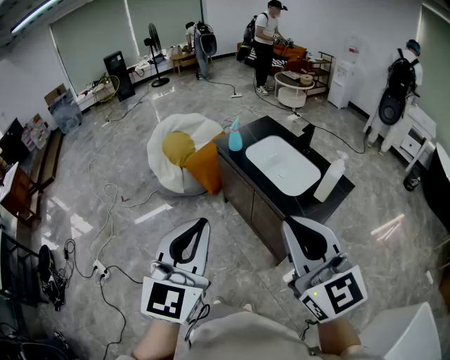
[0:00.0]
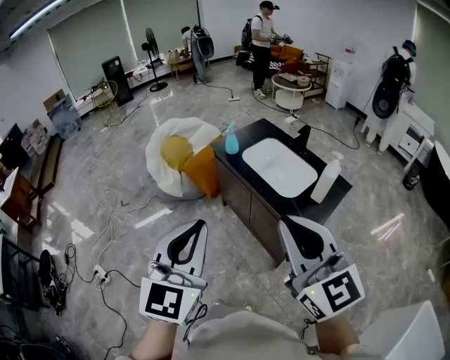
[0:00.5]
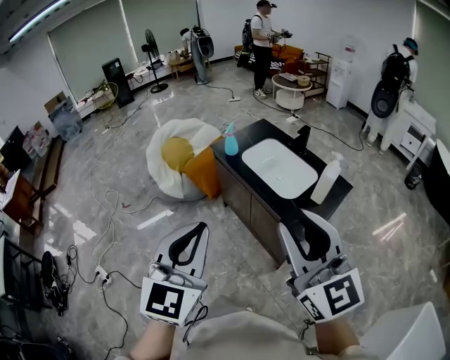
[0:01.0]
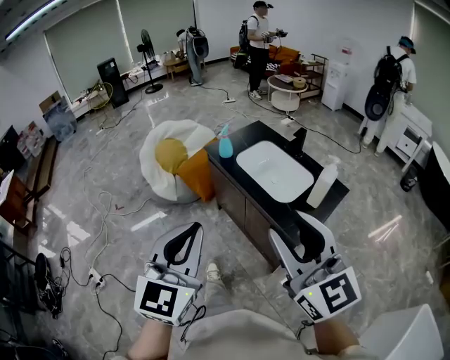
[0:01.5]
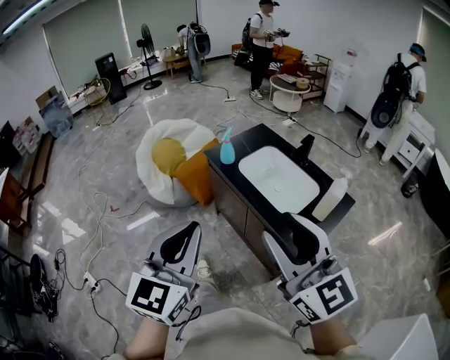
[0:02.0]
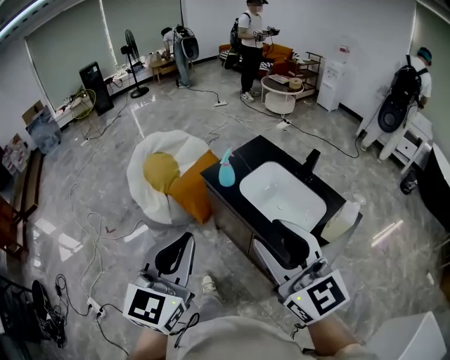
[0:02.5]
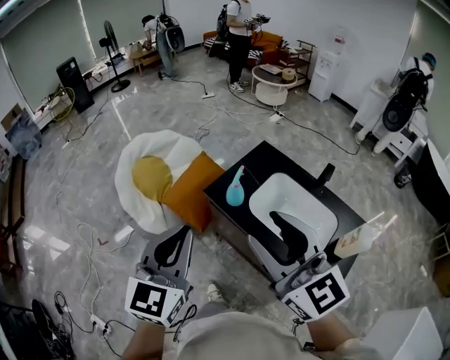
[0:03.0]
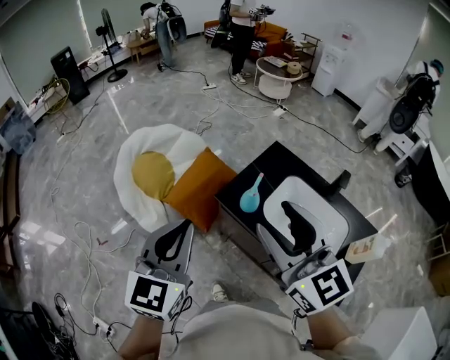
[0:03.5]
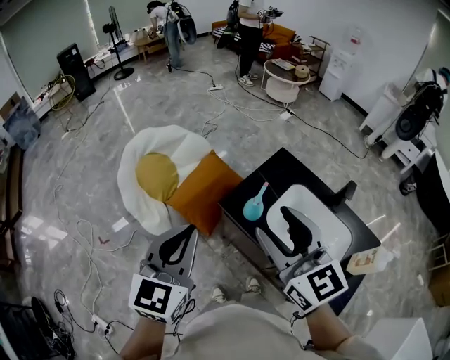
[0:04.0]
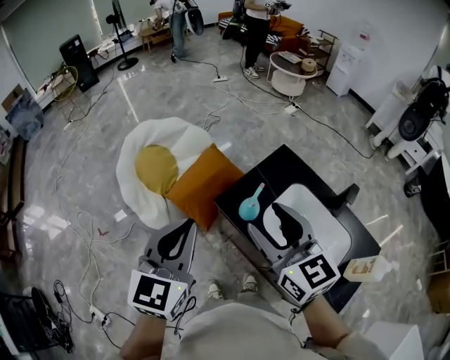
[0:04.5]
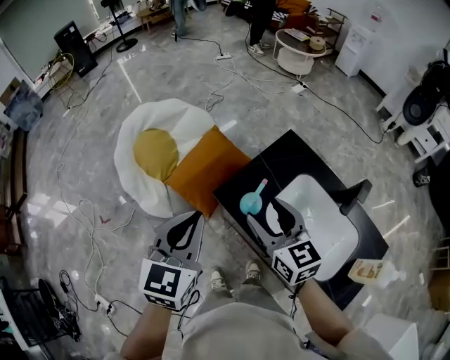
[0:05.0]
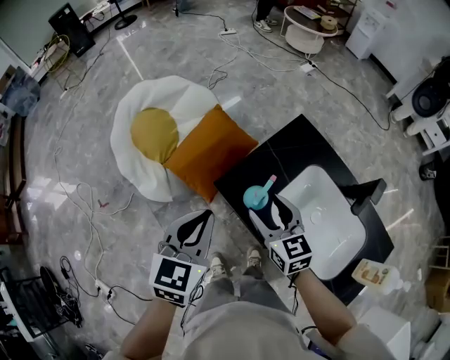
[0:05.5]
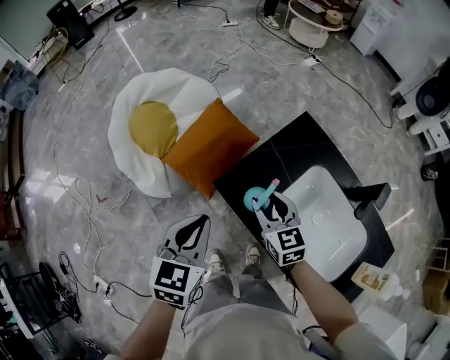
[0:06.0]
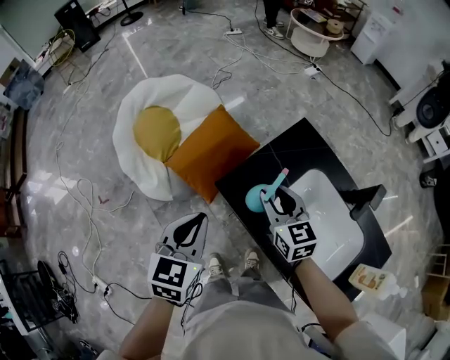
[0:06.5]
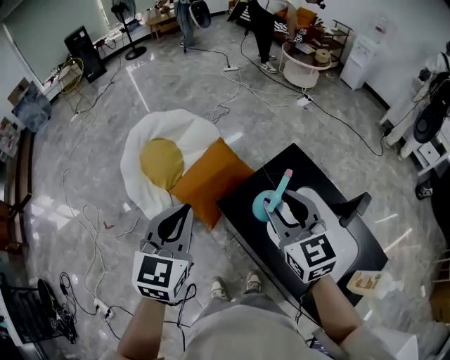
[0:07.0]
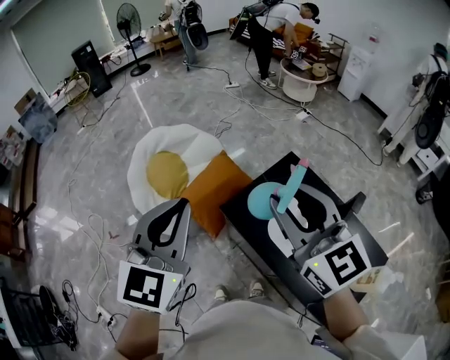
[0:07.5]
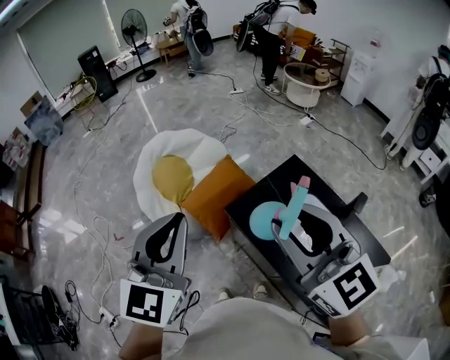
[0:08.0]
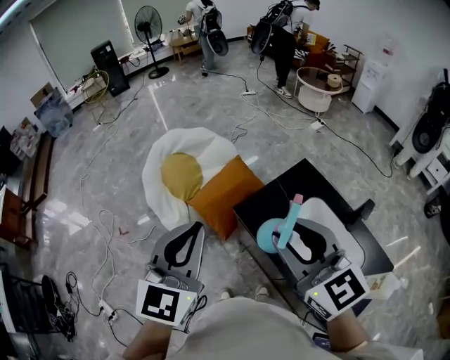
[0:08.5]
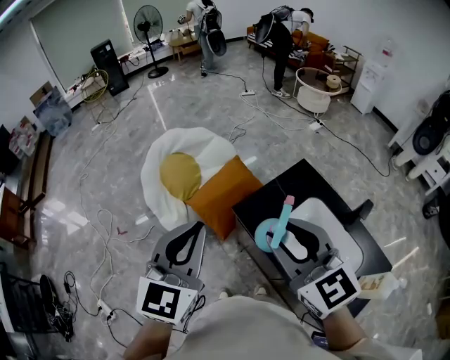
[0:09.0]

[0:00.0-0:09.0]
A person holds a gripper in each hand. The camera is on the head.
0:00.0 to 0:02.0: Both grippers move forward, approximately 10 cm. The right gripper opens its fingers.
0:02.0 to 0:04.5: The pair of grippers is taken forward, about 50 cm.
0:04.5 to 0:07.0: Both grippers travel together forward, roughly 10 cm. The right gripper travels downward and back again, some 30 cm each way, and closes up. The left gripper moves roughly 20 cm downward and comes back.
0:07.0 to 0:09.0: The right gripper travels backward, upward and to the left by about 15 cm. Meanwhile the left gripper heads backward and upward, covering some 15 cm.

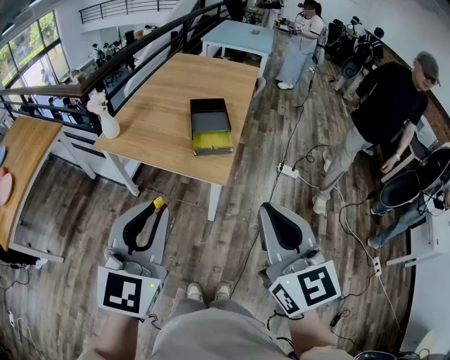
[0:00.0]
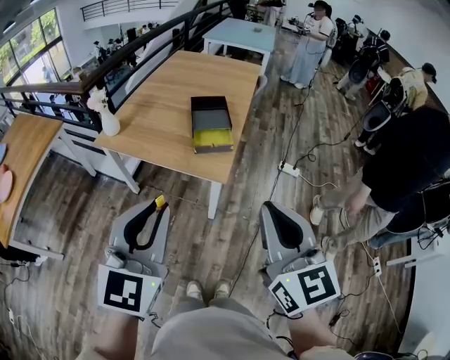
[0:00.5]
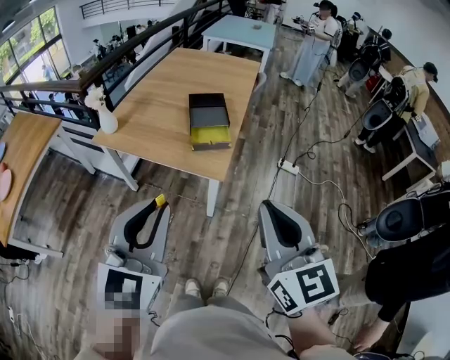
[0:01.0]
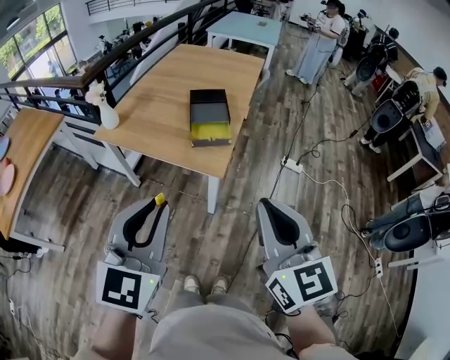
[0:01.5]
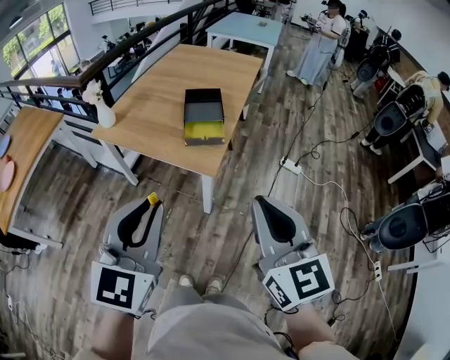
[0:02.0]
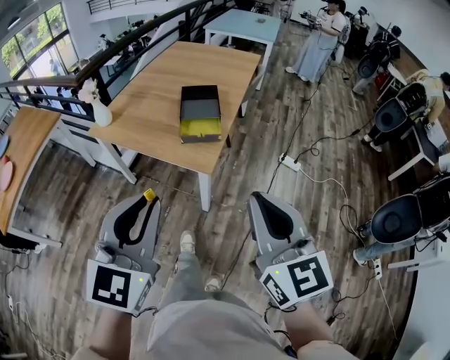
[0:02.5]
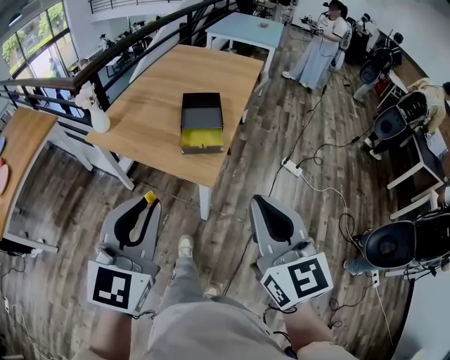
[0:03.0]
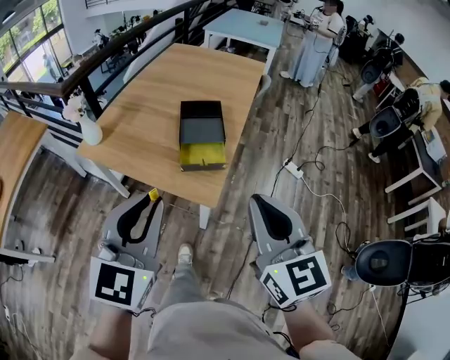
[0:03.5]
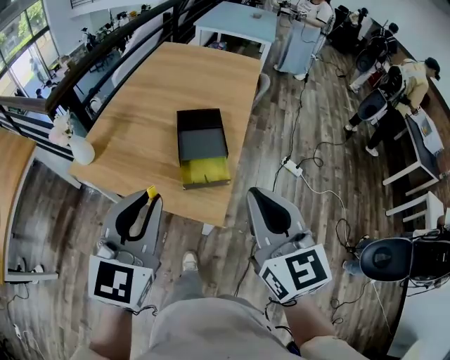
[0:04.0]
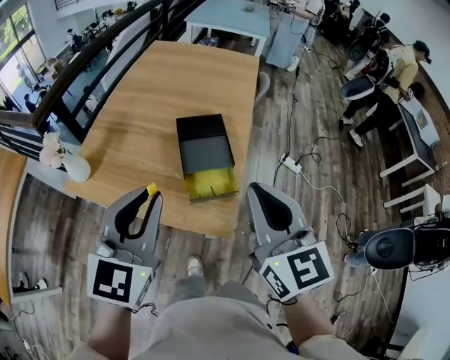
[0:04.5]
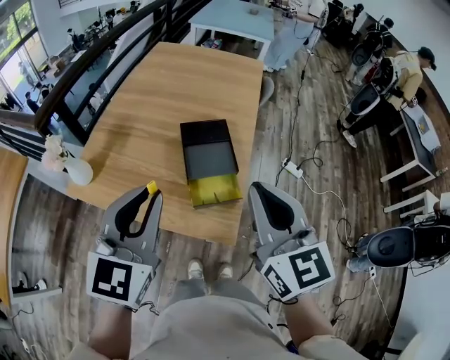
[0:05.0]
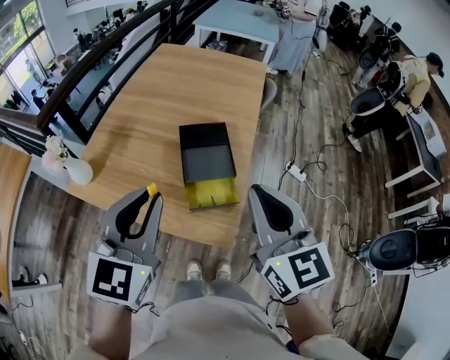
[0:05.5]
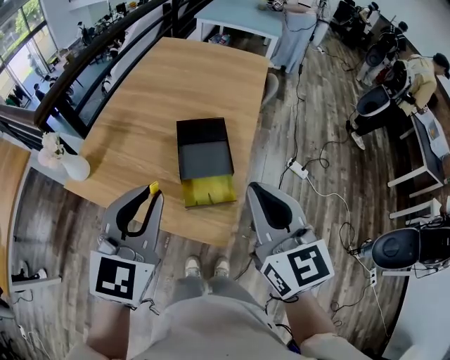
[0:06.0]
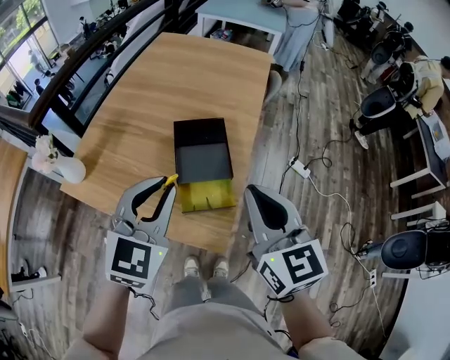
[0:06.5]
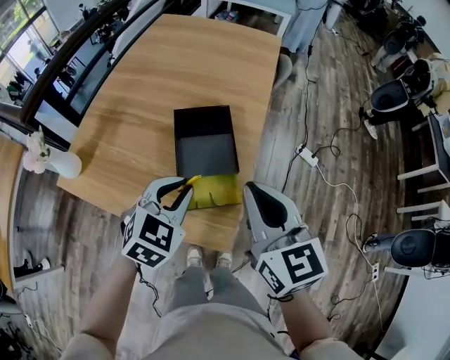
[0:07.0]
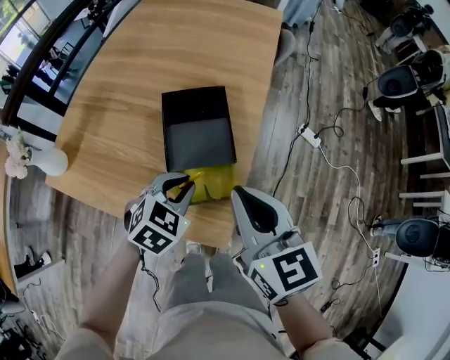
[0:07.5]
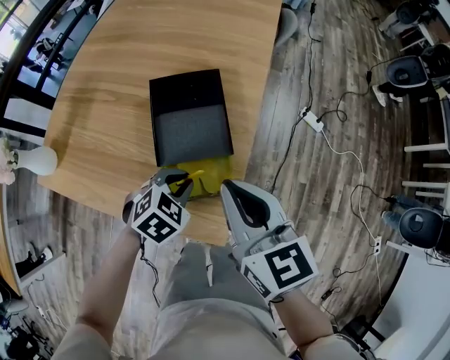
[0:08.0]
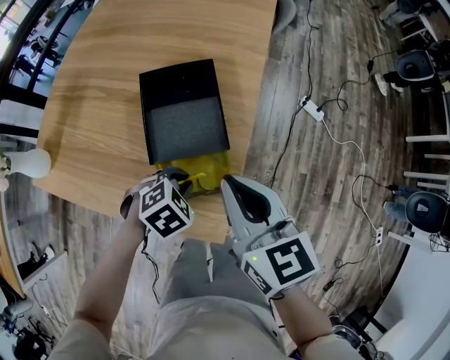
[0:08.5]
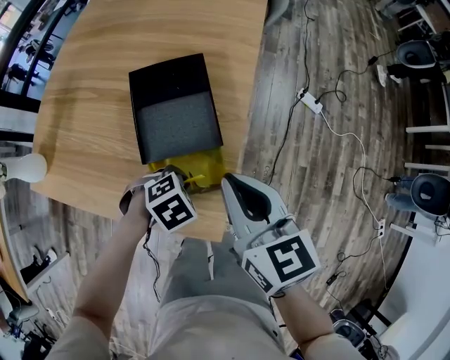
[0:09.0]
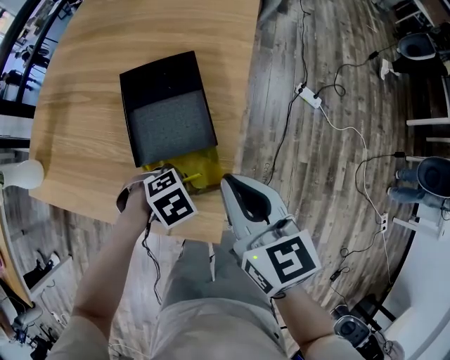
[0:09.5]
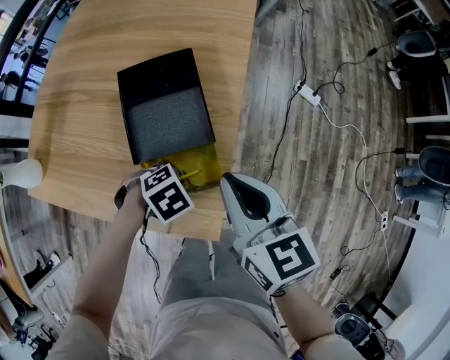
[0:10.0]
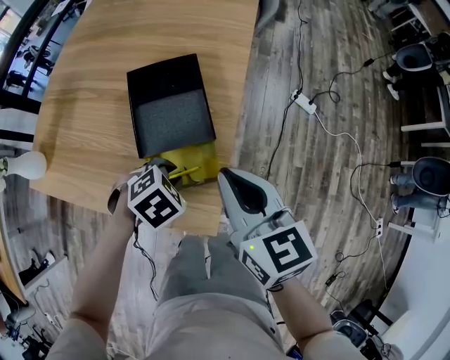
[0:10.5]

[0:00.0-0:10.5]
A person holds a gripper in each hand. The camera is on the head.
0:00.0 to 0:02.0: Both grippers travel together to the right, some 10 cm.
0:02.0 to 0:04.0: The two grippers go about 30 cm forward.
0:04.0 to 0:06.5: The grippers both shift forward by approximately 20 cm.
0:06.5 to 0:08.5: The left gripper is displaced downward by roughly 35 cm, and tilts its fingers about 50 degrees downward; the right gripper moves downward and forward, some 20 cm.
0:08.5 to 0:10.5: The grippers move only a little.

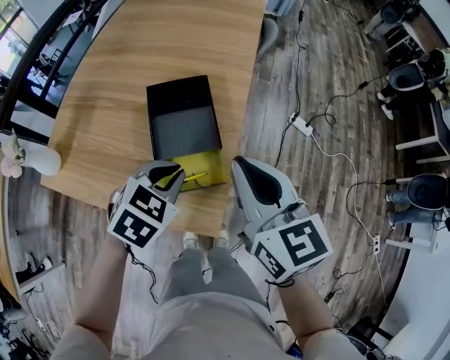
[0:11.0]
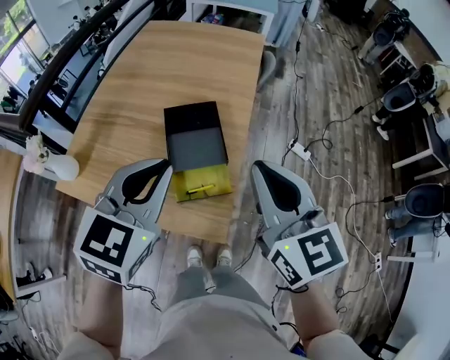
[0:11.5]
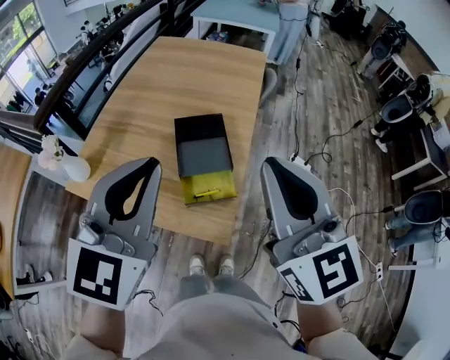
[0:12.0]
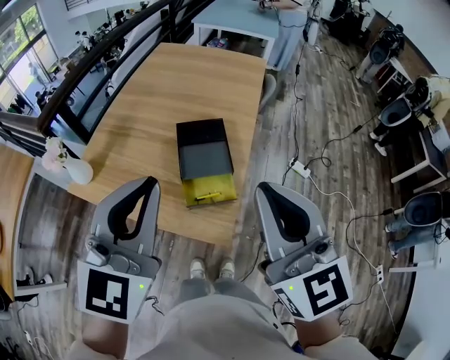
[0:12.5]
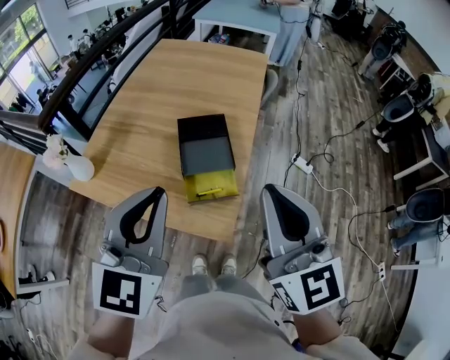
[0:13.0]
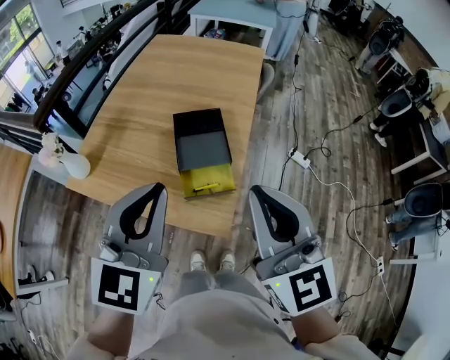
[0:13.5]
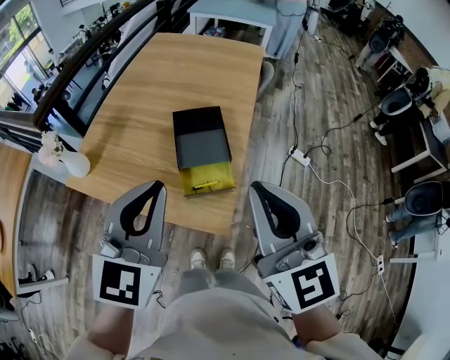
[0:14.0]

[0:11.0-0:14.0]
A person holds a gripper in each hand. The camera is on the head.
0:11.0 to 0:12.5: The two grippers go roughly 30 cm upward and backward. The right gripper turns by about 20 degrees, while the left gripper tilts its fingers some 50 degrees upward.
0:12.5 to 0:14.0: The left gripper is displaced downward by approximately 5 cm.

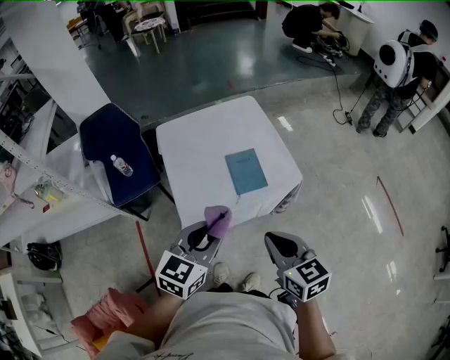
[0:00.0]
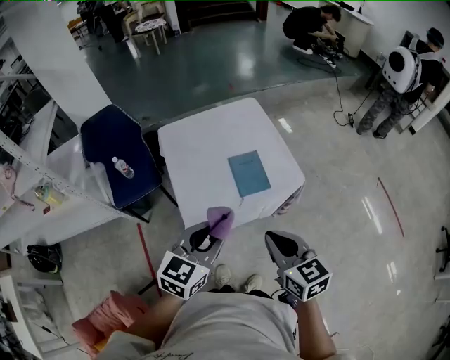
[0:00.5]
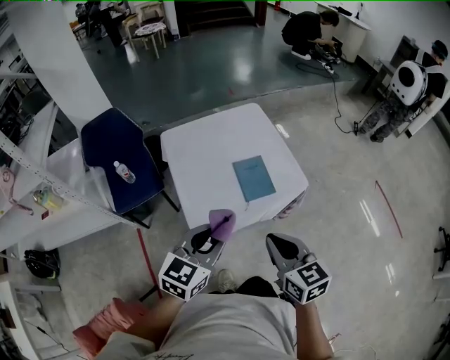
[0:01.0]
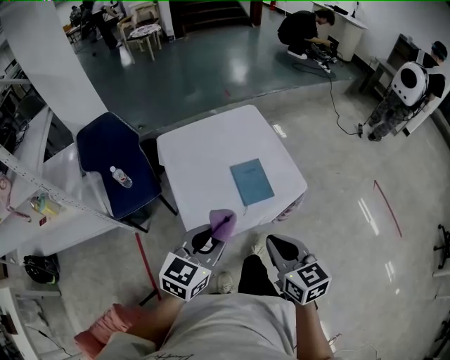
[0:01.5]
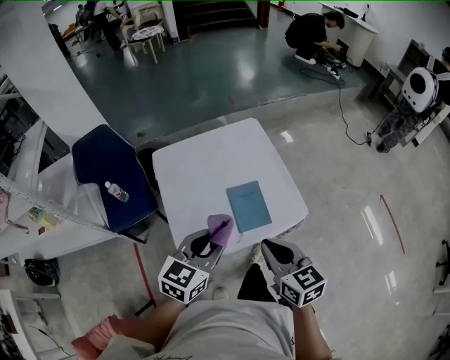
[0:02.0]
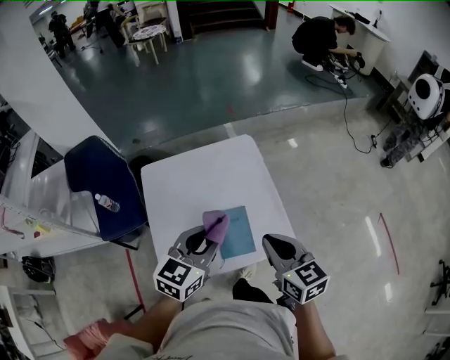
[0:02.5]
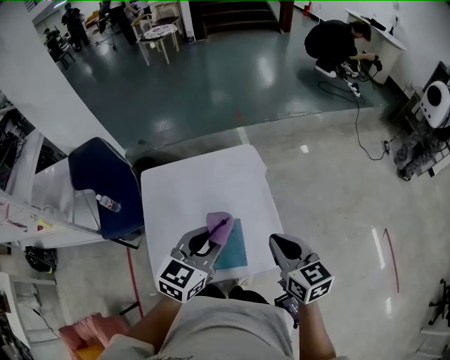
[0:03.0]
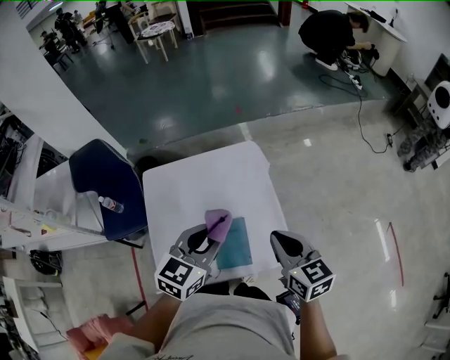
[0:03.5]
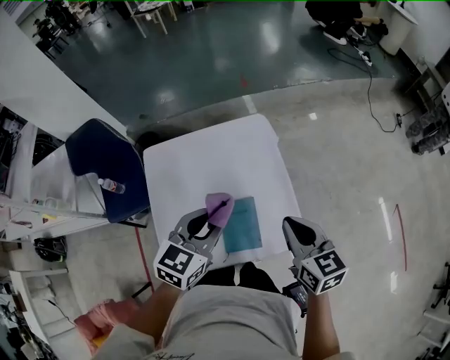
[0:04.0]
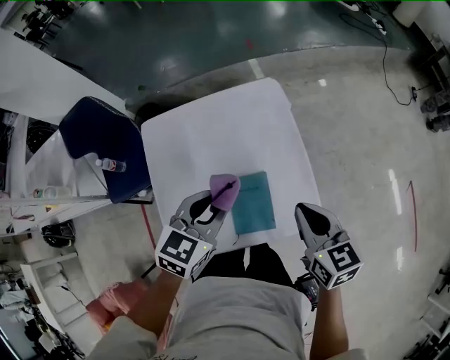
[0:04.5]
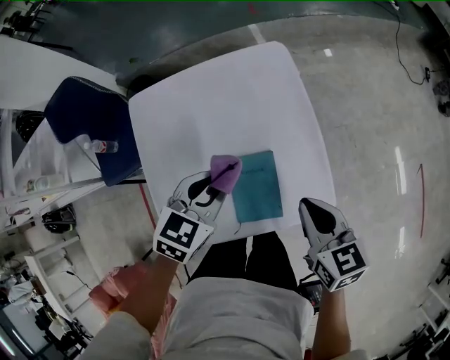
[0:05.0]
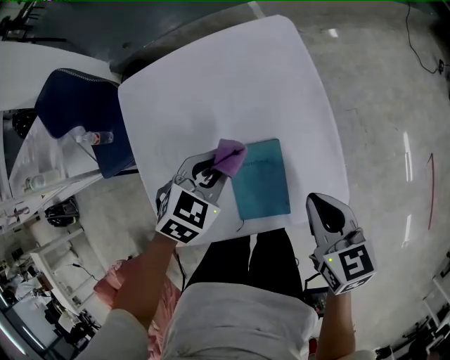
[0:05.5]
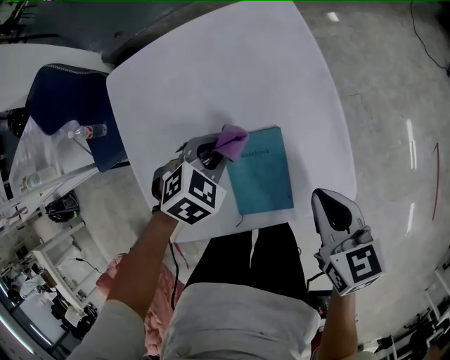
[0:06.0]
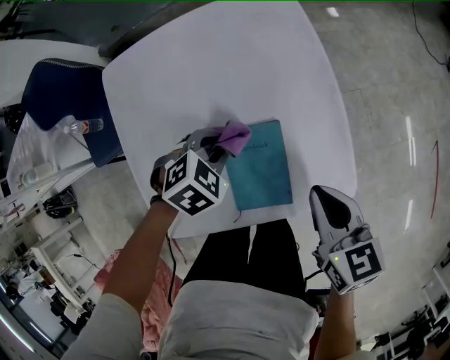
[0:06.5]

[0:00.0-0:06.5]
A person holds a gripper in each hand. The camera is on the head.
0:00.0 to 0:02.0: Both grippers move forward, roughly 15 cm.
0:02.0 to 0:04.5: The right gripper shifts approximately 25 cm forward and to the right. The left gripper shifts some 20 cm forward.
0:04.5 to 0:06.5: The left gripper shifts approximately 25 cm downward, and angles its fingers downward, by approximately 40 degrees; the right gripper shifts some 15 cm downward.
